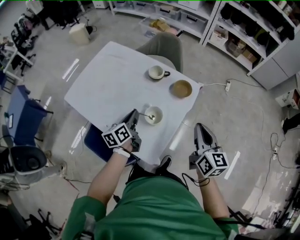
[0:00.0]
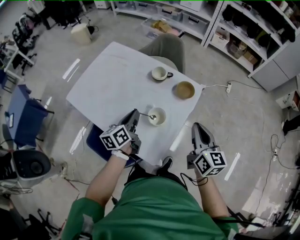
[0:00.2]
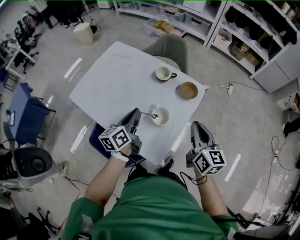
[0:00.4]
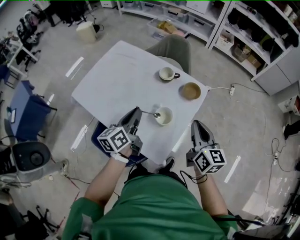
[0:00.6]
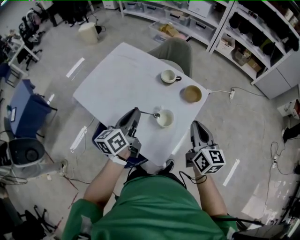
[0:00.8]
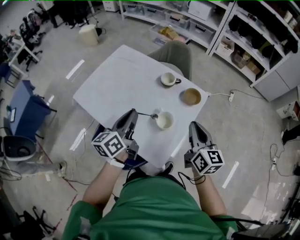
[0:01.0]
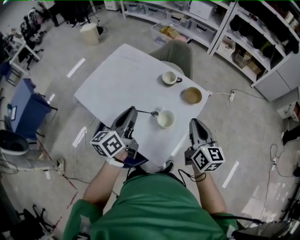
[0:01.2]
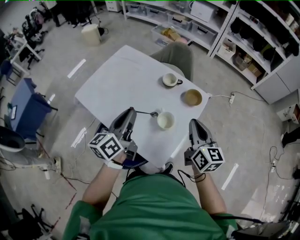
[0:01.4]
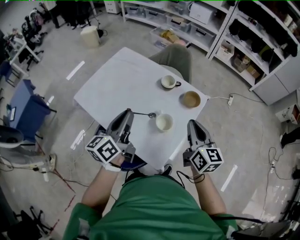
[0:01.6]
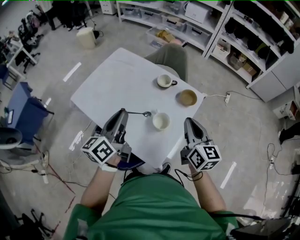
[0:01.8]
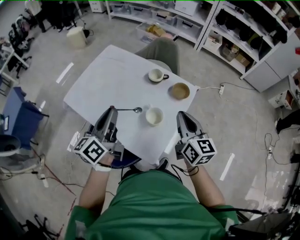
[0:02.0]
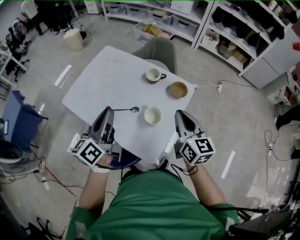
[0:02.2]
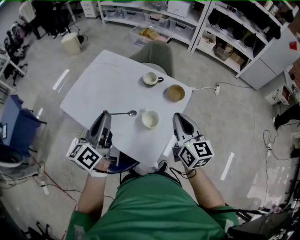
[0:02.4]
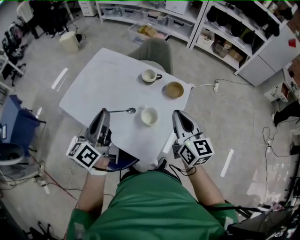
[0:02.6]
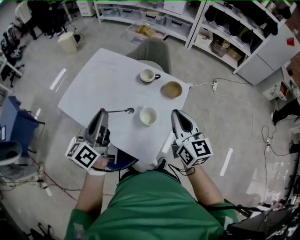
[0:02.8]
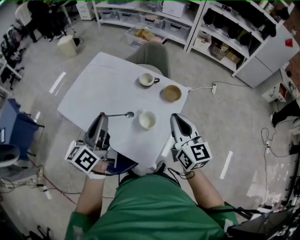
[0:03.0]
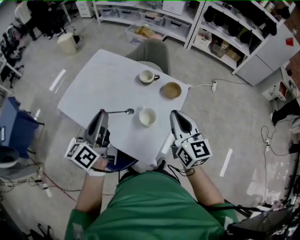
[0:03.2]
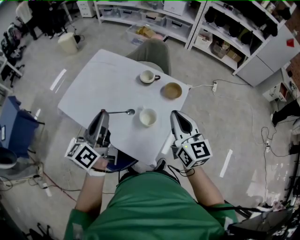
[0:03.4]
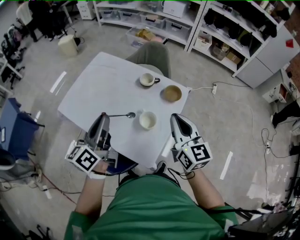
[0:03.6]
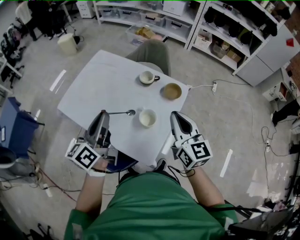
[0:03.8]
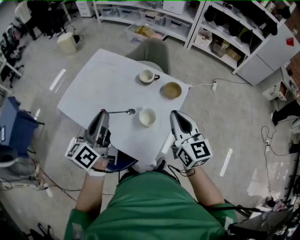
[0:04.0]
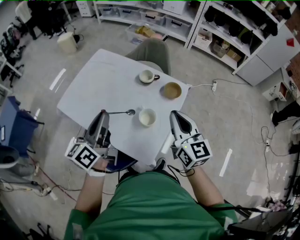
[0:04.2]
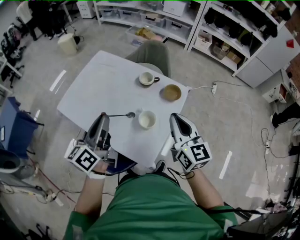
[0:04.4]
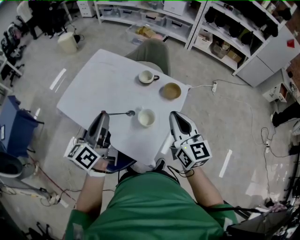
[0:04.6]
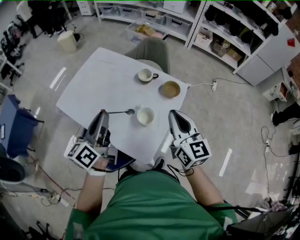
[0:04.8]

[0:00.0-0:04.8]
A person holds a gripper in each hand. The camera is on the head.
0:00.0 to 0:01.6: The right gripper moves to the left, approximately 10 cm; the left gripper is displaced upward and to the left by approximately 20 cm.
0:01.6 to 0:03.2: The grippers make only small movements.
0:03.2 to 0:04.8: The two grippers keep their place.

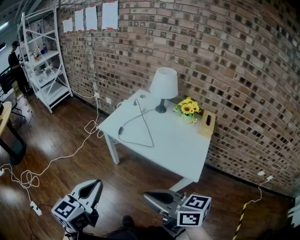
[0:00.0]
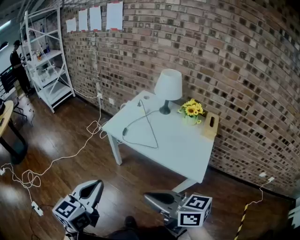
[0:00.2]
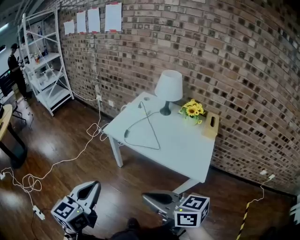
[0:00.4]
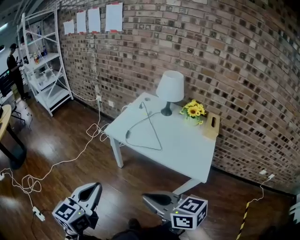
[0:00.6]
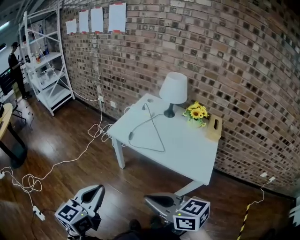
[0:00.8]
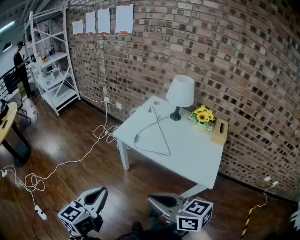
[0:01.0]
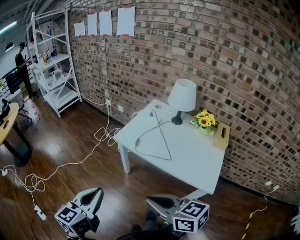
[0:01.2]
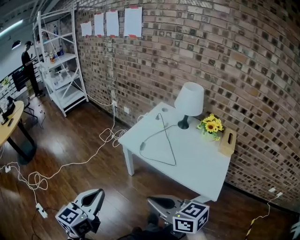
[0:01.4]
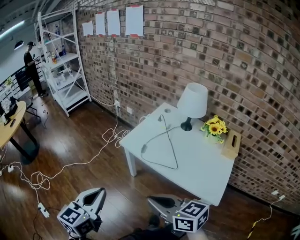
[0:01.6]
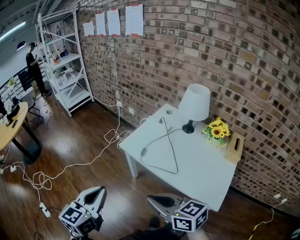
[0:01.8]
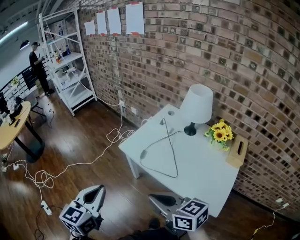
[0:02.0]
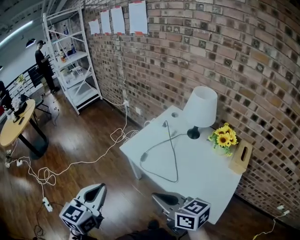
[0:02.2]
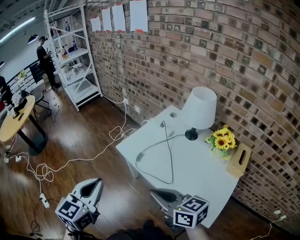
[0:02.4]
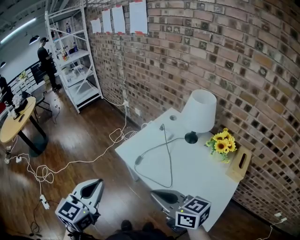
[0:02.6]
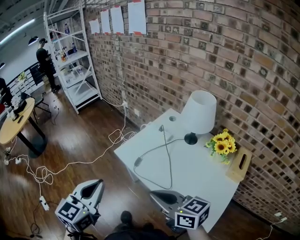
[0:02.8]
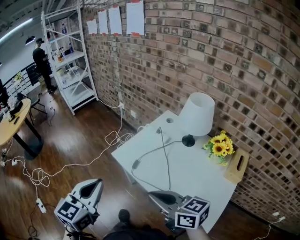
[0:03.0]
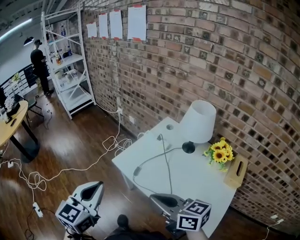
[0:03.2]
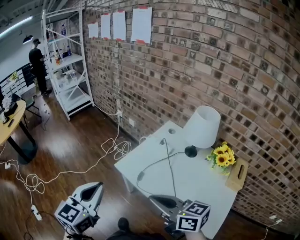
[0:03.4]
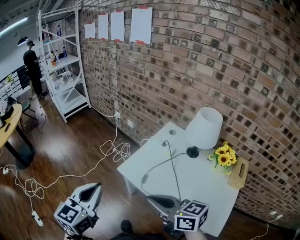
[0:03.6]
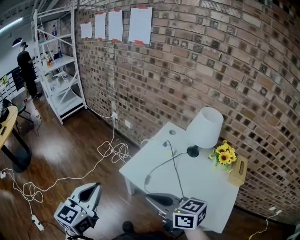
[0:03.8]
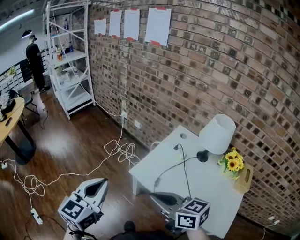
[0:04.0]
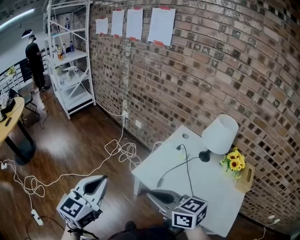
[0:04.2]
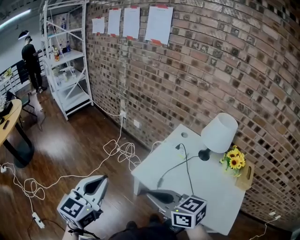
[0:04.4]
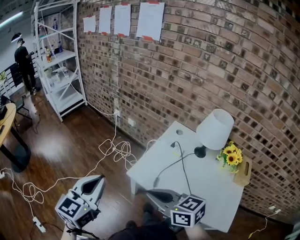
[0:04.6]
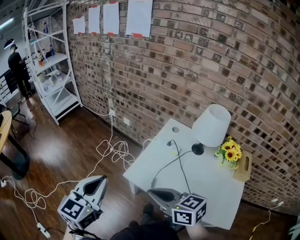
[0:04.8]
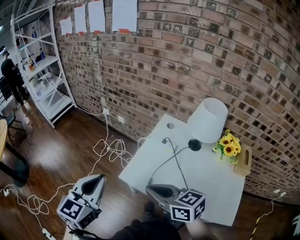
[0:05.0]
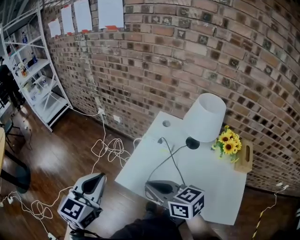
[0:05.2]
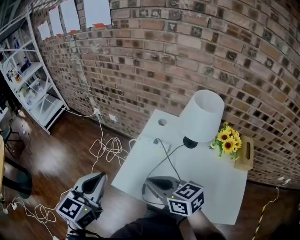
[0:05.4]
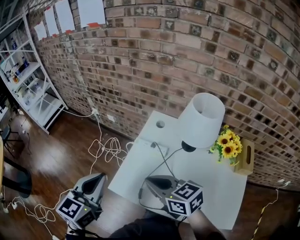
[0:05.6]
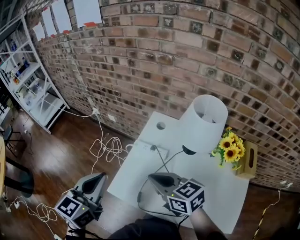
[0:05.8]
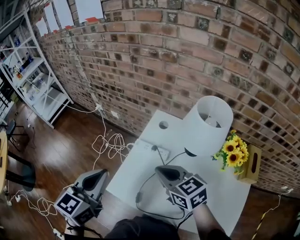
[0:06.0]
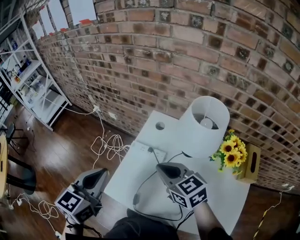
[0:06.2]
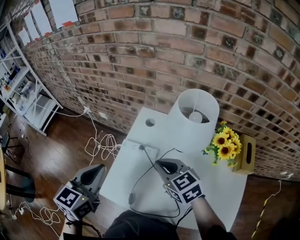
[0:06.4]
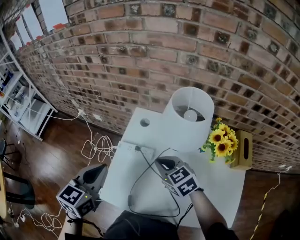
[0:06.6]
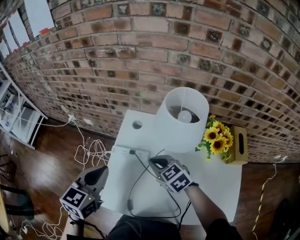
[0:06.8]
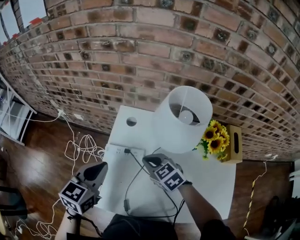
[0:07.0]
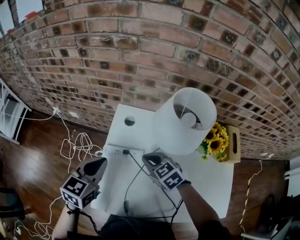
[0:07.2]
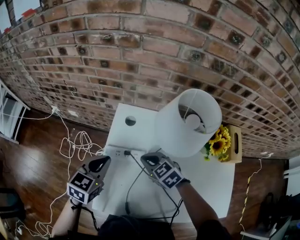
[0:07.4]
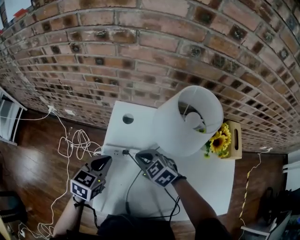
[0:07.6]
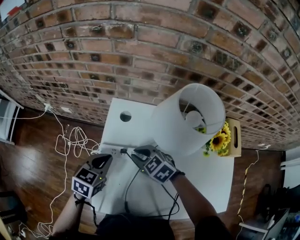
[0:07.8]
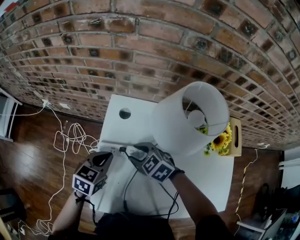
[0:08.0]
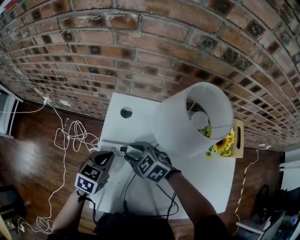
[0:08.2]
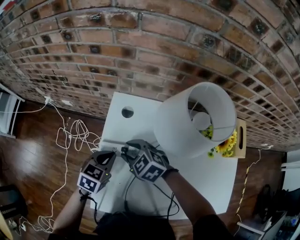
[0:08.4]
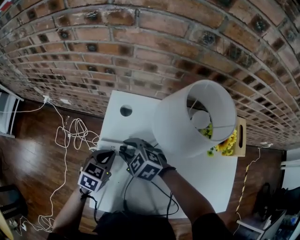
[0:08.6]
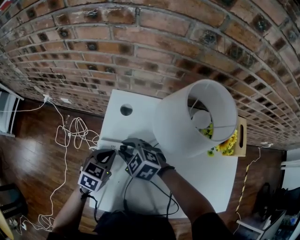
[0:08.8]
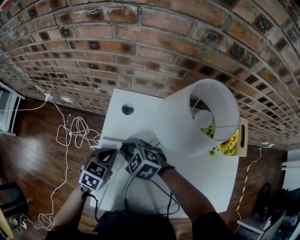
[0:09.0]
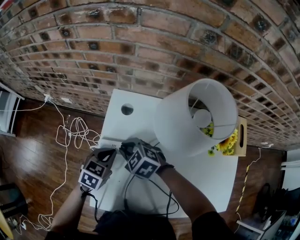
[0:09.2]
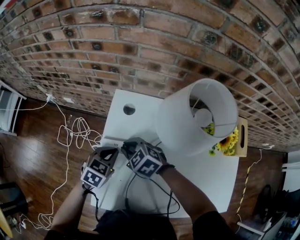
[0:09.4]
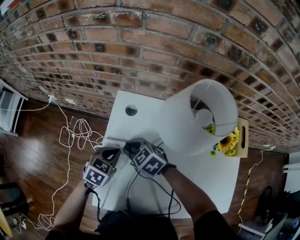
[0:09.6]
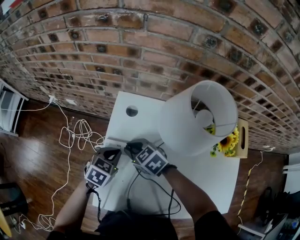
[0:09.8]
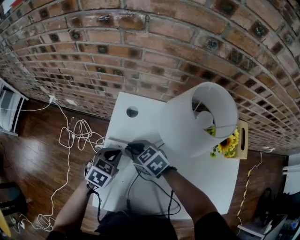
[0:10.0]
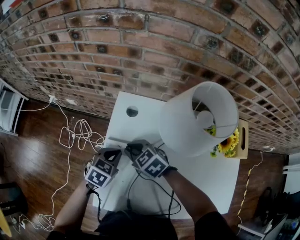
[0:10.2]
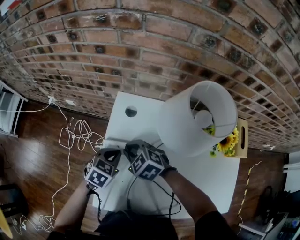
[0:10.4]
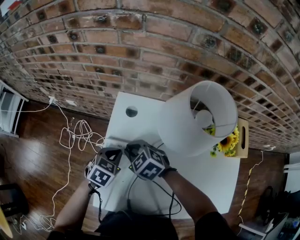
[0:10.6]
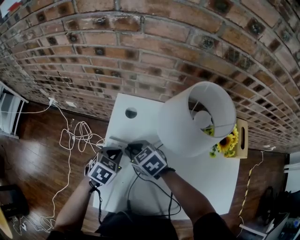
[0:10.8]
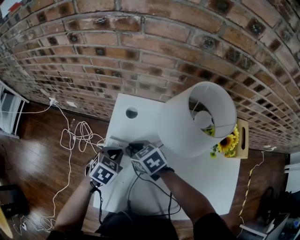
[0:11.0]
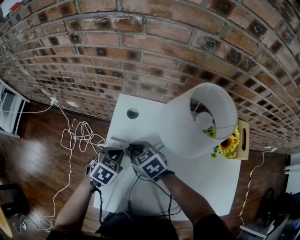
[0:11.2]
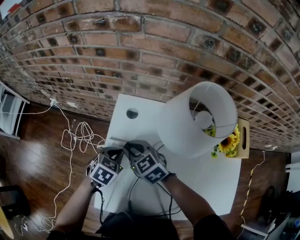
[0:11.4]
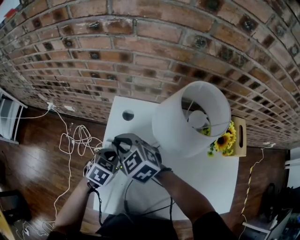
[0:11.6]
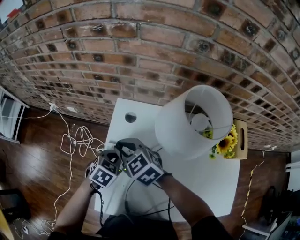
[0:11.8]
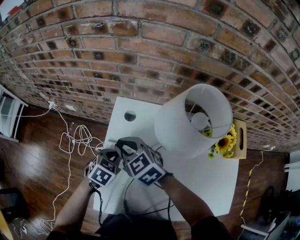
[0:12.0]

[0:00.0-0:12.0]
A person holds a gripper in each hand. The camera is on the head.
0:00.0 to 0:01.6: The grippers both shift forward and to the left by approximately 15 cm.
0:01.6 to 0:03.0: The two grippers go approximately 15 cm to the right and forward.
0:03.0 to 0:04.4: The left gripper travels forward and to the left by about 20 cm; the right gripper heads to the left and forward, covering approximately 20 cm.
0:04.4 to 0:06.0: Both grippers travel together to the right and forward, approximately 30 cm.
0:06.0 to 0:07.6: The right gripper shifts approximately 20 cm downward and forward, and rotates some 20 degrees. Meanwhile the left gripper goes approximately 25 cm downward, forward and to the right, and changes its angle by approximately 30 degrees.
0:07.6 to 0:09.0: The left gripper is displaced downward by some 10 cm. The right gripper travels to the left by some 5 cm, and opens, then closes once more.
0:10.4 to 0:12.0: The right gripper goes about 10 cm upward.

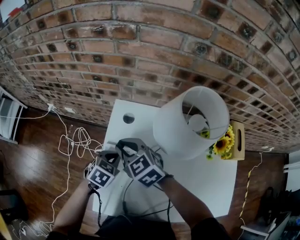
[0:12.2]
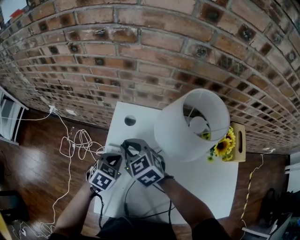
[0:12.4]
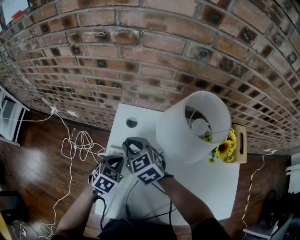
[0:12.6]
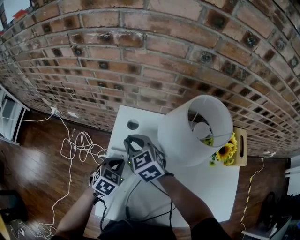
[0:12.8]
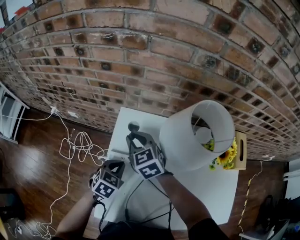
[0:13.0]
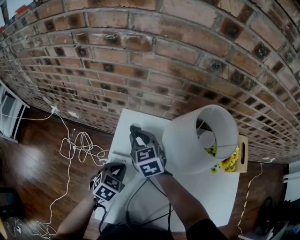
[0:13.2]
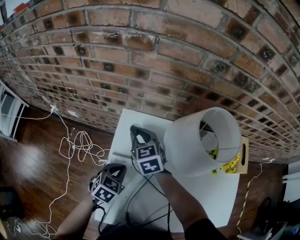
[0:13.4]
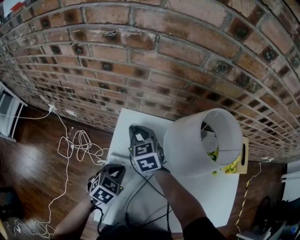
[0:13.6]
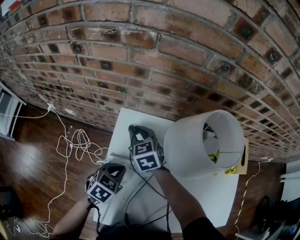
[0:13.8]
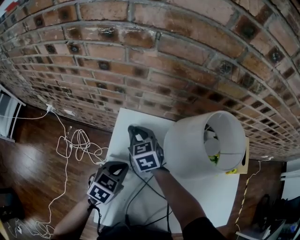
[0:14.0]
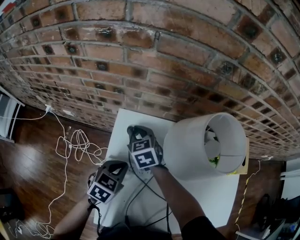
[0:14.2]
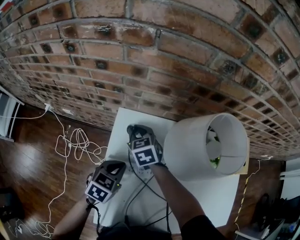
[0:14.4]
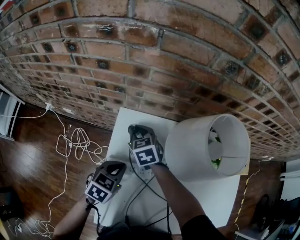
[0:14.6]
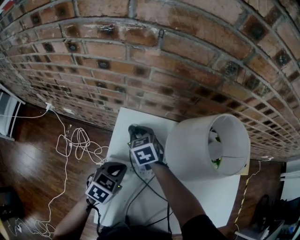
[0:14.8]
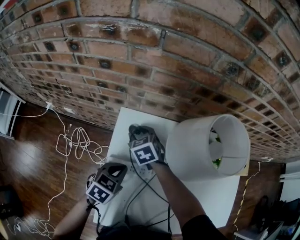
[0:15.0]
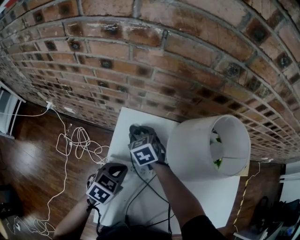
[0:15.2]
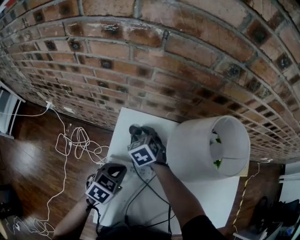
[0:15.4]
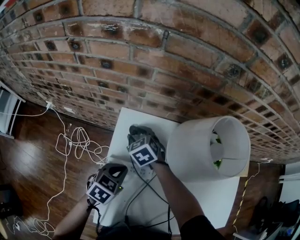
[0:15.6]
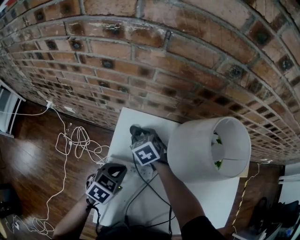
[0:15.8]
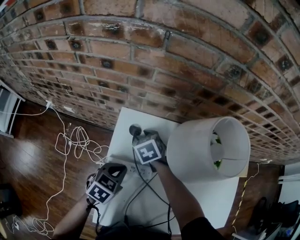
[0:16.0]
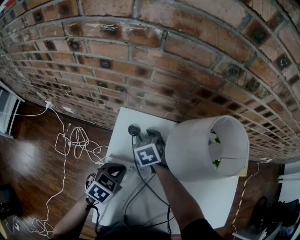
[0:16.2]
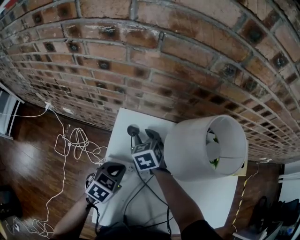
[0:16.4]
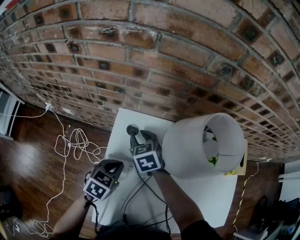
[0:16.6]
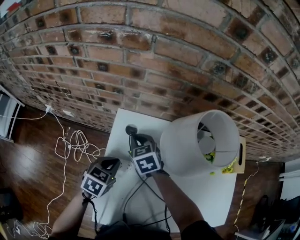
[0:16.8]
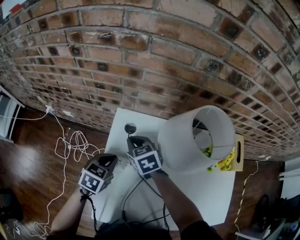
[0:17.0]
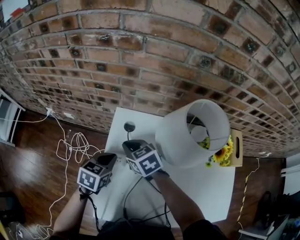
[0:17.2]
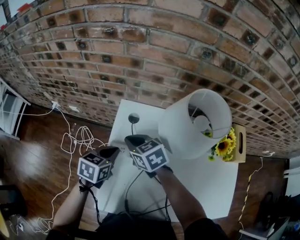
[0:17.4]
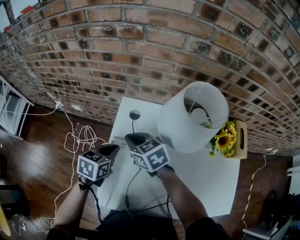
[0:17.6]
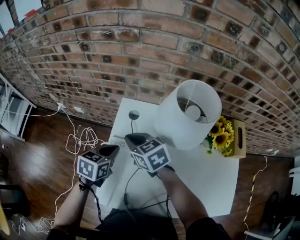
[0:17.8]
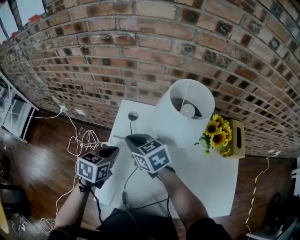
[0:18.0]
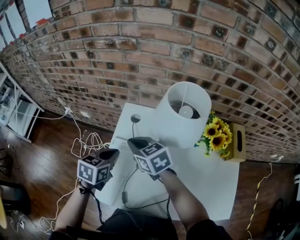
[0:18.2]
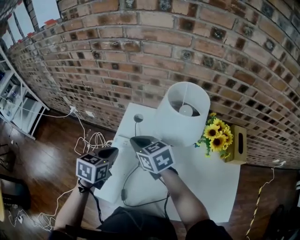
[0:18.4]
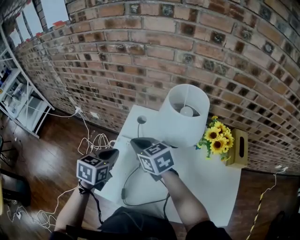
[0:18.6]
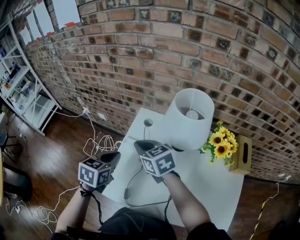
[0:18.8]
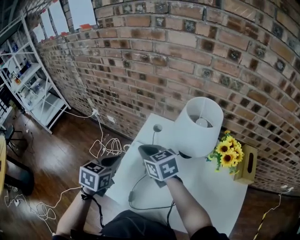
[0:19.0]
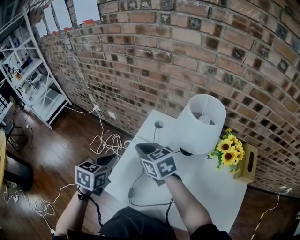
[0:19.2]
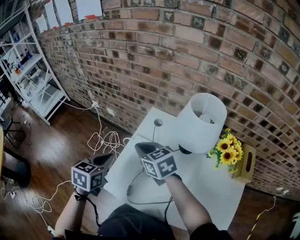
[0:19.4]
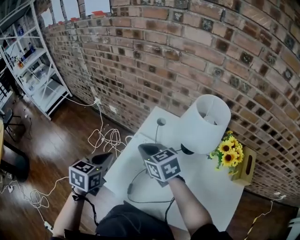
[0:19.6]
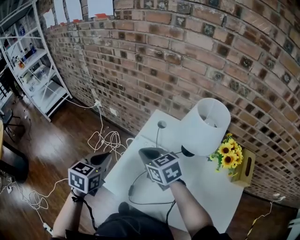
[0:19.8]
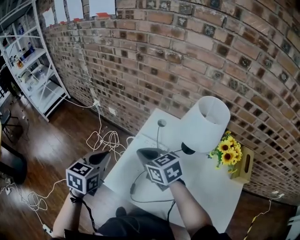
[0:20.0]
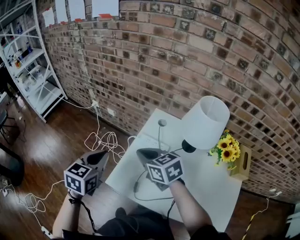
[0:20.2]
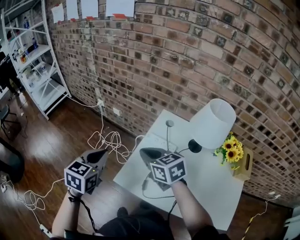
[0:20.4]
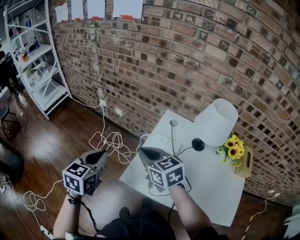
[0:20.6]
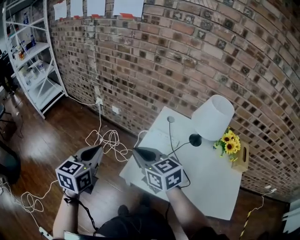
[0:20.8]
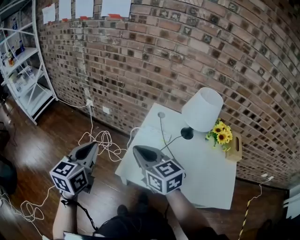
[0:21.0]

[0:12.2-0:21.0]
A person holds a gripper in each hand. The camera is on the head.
0:12.2 to 0:13.6: The right gripper travels forward by roughly 15 cm, and swivels about 20 degrees.
0:13.6 to 0:15.2: The right gripper shifts about 5 cm downward, and opens.
0:15.2 to 0:16.6: There are only small adjustments of the grippers.
0:16.6 to 0:18.0: The left gripper goes some 5 cm upward, while the right gripper is displaced backward and upward by roughly 20 cm, changes its angle by approximately 30 degrees, and closes its fingers.
0:18.0 to 0:19.6: The left gripper heads to the left, backward and upward, covering approximately 15 cm, and changes its angle by approximately 20 degrees, while the right gripper is displaced backward and to the left by approximately 10 cm.
0:19.6 to 0:21.0: The left gripper goes roughly 20 cm to the left and upward, and rotates roughly 20 degrees. The right gripper shifts some 20 cm to the left, backward and upward.
